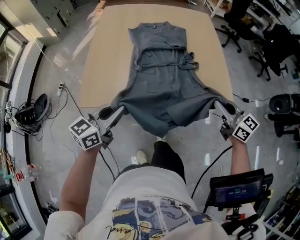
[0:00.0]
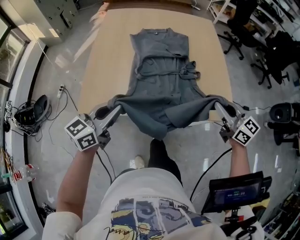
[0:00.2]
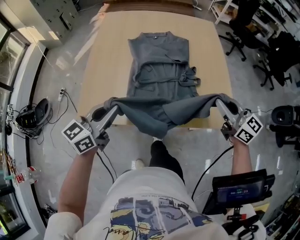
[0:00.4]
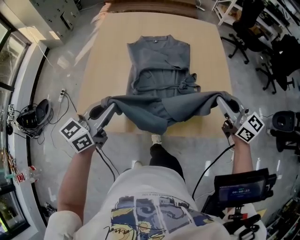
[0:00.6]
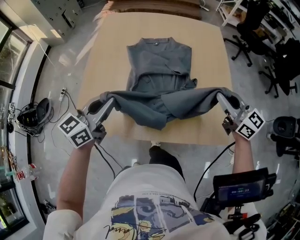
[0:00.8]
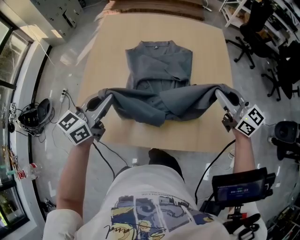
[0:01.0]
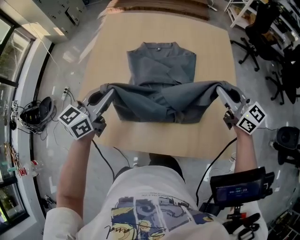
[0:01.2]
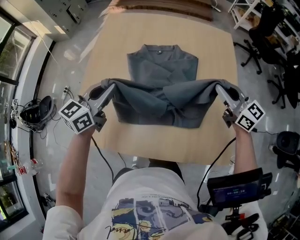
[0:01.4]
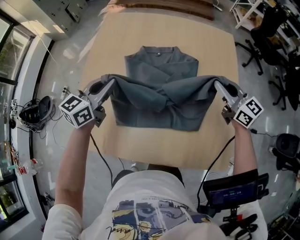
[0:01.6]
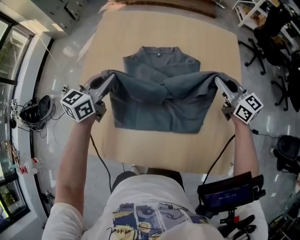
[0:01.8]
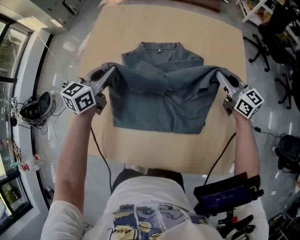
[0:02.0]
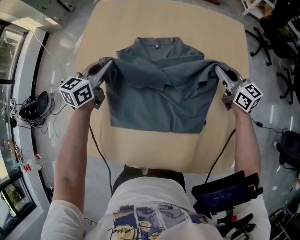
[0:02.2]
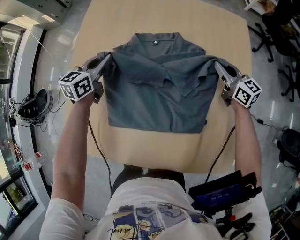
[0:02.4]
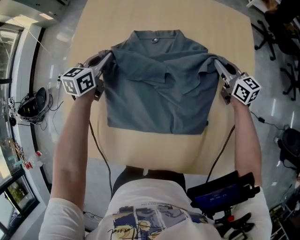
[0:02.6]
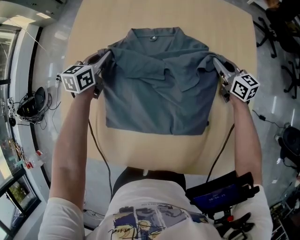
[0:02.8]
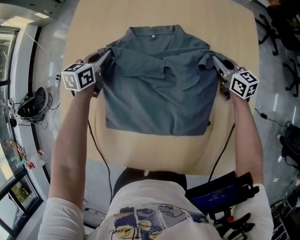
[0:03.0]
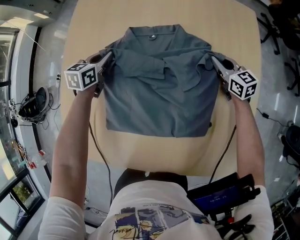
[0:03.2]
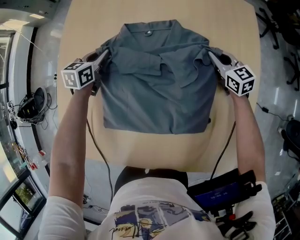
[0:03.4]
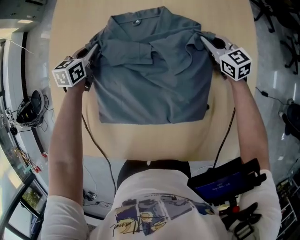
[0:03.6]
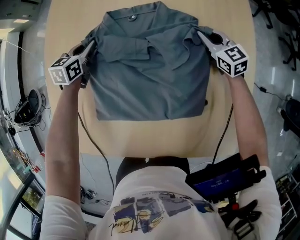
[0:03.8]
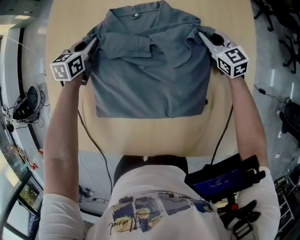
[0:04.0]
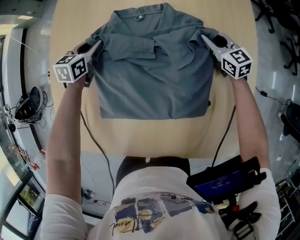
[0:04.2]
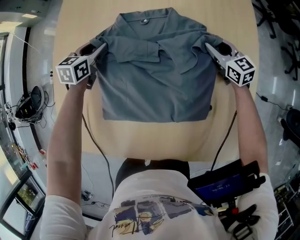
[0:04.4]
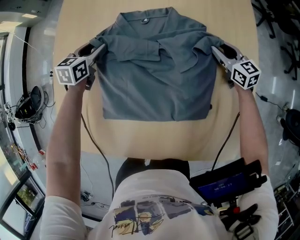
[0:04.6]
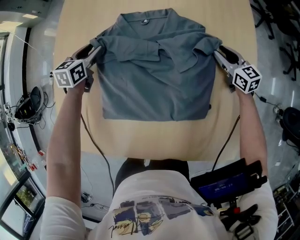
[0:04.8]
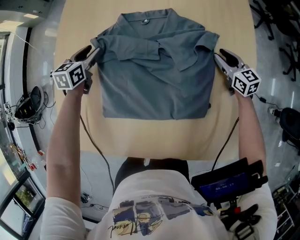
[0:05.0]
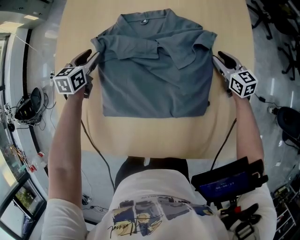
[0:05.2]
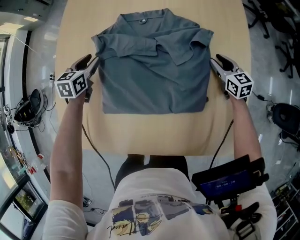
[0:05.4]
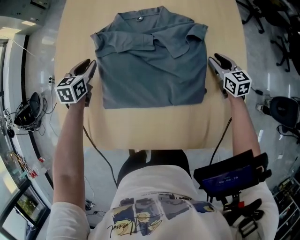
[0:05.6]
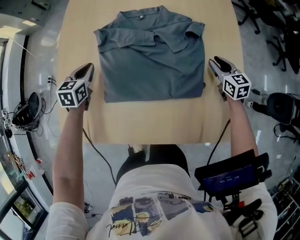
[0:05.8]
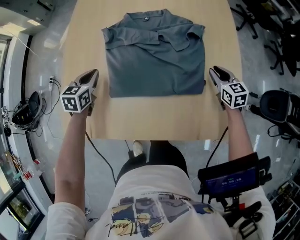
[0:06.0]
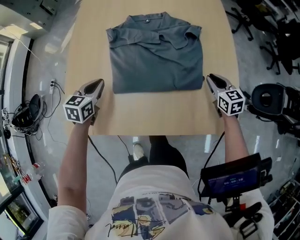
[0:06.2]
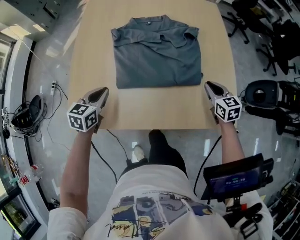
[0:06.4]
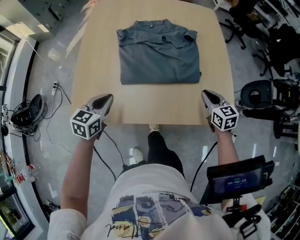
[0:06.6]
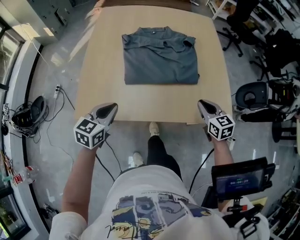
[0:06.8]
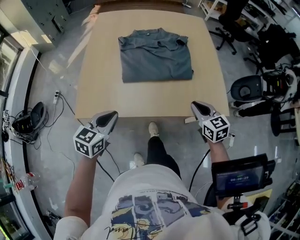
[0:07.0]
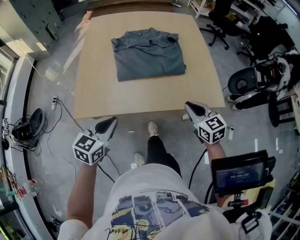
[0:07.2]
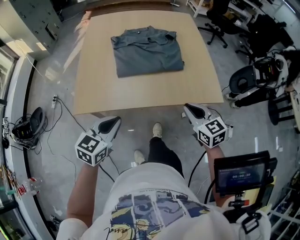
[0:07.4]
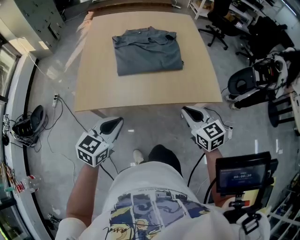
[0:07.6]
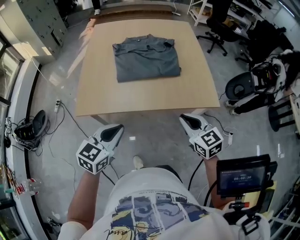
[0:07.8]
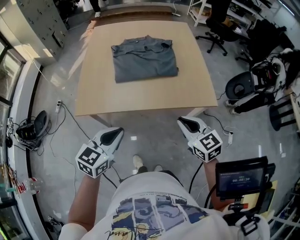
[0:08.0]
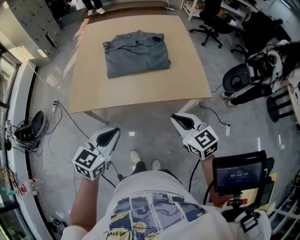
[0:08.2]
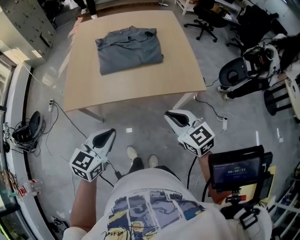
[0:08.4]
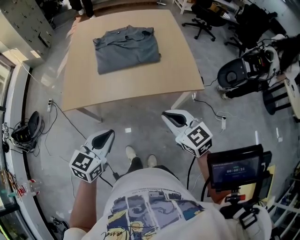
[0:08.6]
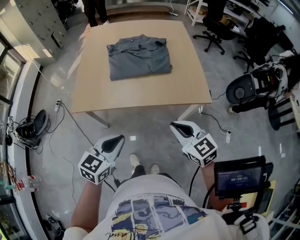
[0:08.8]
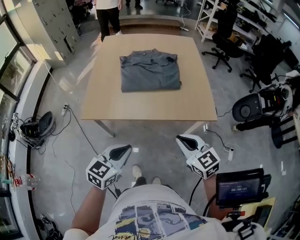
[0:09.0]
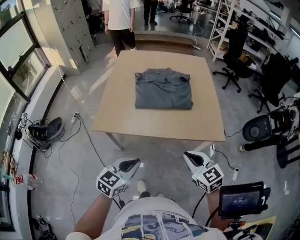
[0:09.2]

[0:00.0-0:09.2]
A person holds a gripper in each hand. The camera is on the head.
0.0 to 1.6 s: The grippers both shift forward by approximately 35 cm.
1.6 to 3.0 s: Both grippers move downward and forward, approximately 25 cm. The left gripper changes its angle by some 20 degrees.
3.0 to 4.6 s: The right gripper opens its fingers; the left gripper opens.
4.6 to 6.2 s: Both grippers travel together backward, roughly 25 cm. The left gripper closes.
6.2 to 7.6 s: The right gripper goes some 35 cm backward, while the left gripper moves backward and upward, roughly 35 cm, and rotates about 20 degrees.
7.6 to 9.2 s: The left gripper moves backward and to the right, about 10 cm, while the right gripper travels backward by about 5 cm.

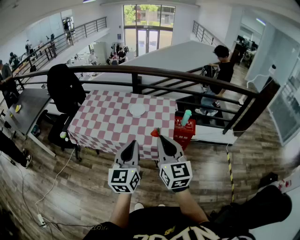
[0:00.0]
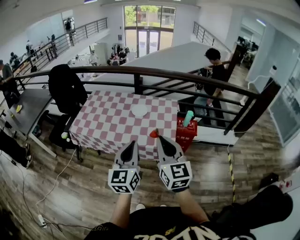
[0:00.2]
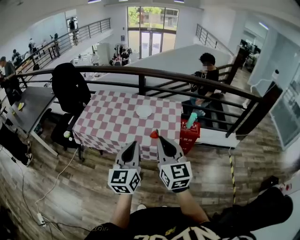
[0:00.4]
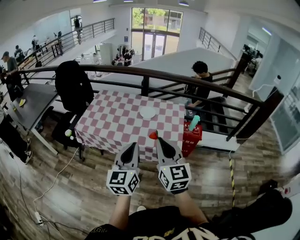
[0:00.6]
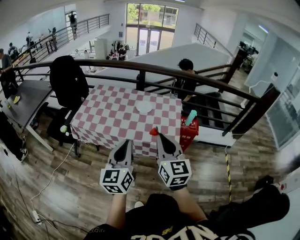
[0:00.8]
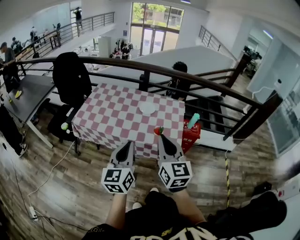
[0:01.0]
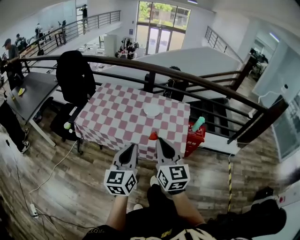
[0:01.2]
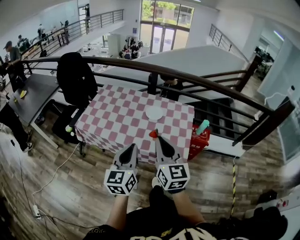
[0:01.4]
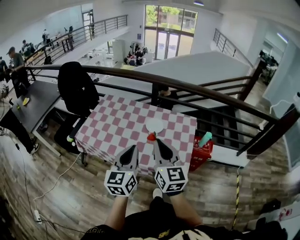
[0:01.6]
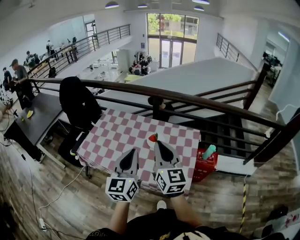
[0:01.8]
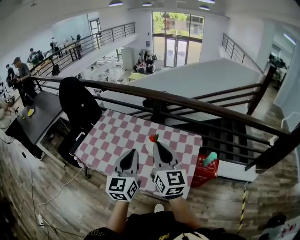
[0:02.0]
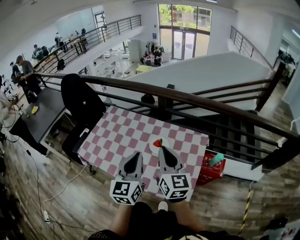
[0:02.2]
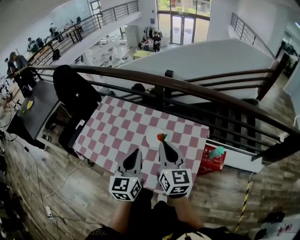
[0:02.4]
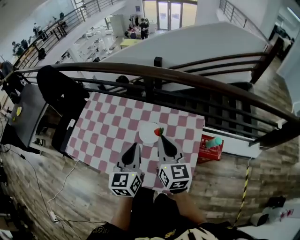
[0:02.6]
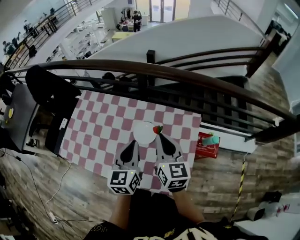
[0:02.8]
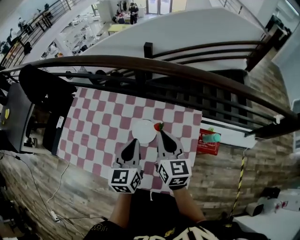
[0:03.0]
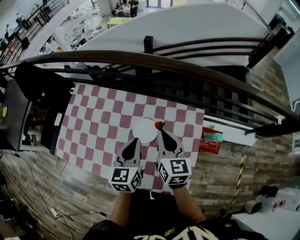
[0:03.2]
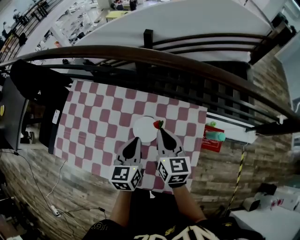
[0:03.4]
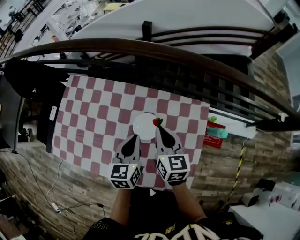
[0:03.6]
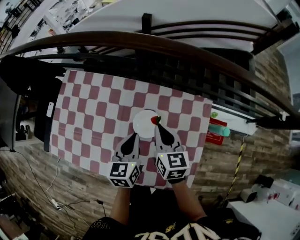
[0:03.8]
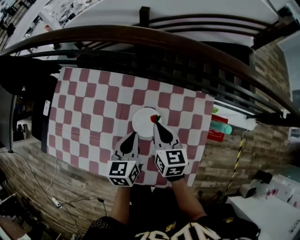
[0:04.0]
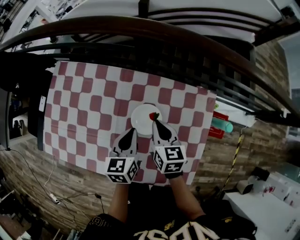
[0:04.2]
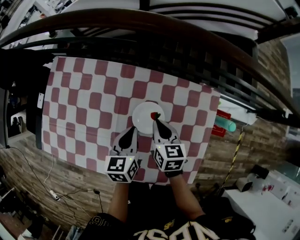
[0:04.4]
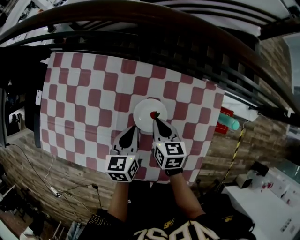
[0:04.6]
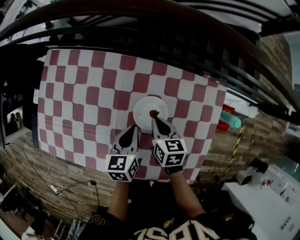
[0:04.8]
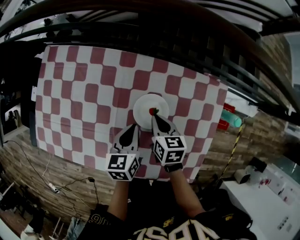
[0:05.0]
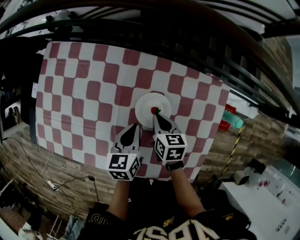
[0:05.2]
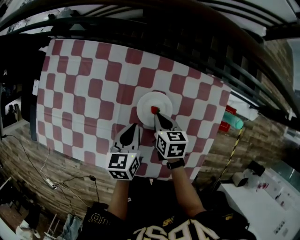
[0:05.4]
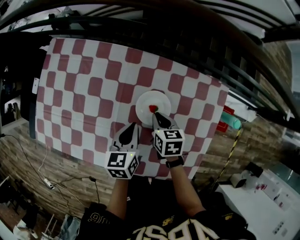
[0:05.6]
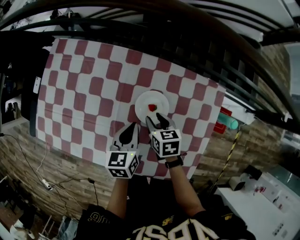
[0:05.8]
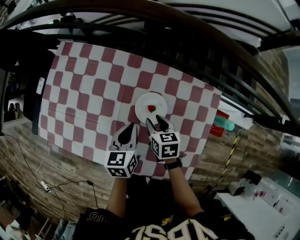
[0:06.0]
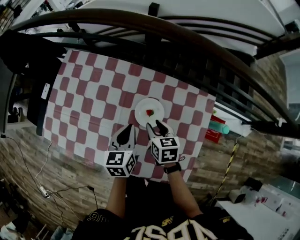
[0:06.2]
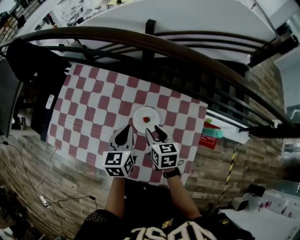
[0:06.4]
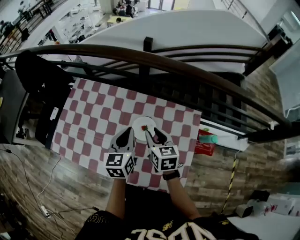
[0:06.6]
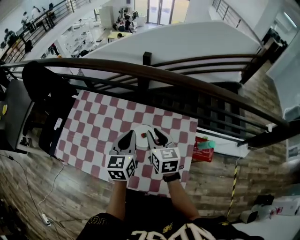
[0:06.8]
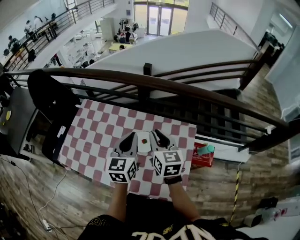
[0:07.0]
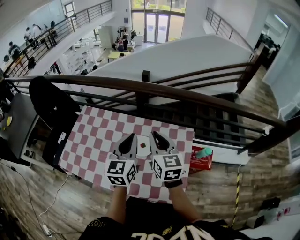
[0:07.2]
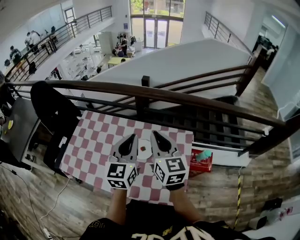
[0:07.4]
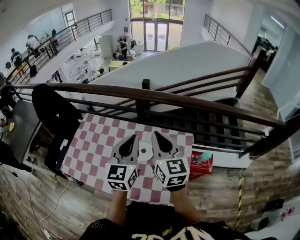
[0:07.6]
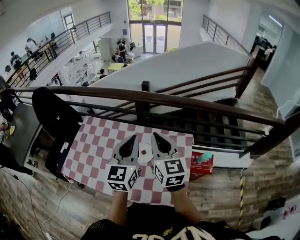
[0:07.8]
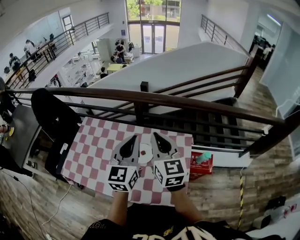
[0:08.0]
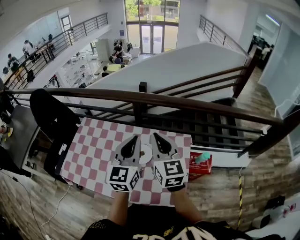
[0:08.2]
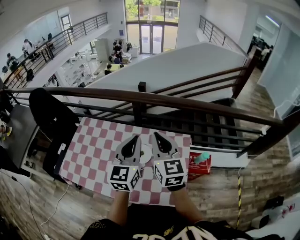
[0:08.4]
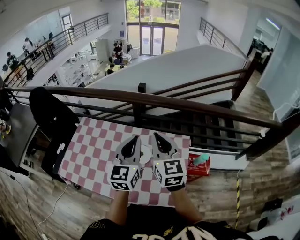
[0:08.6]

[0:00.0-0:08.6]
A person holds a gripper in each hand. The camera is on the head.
0.0 to 1.4 s: Both grippers move to the left and forward, roughly 15 cm.
1.4 to 2.8 s: Both grippers travel together forward, approximately 35 cm.
2.8 to 4.4 s: The right gripper goes some 25 cm downward, and changes its angle by some 30 degrees. The left gripper travels downward and forward by roughly 20 cm, and rotates some 20 degrees.
4.4 to 5.8 s: The right gripper heads downward, covering roughly 10 cm, and opens its fingers.
5.8 to 7.2 s: Both grippers move upward, roughly 35 cm. The right gripper tips its fingers upward by approximately 40 degrees, and closes its fingers; the left gripper rotates roughly 40 degrees.
7.2 to 8.6 s: The grippers both shift upward by roughly 5 cm.

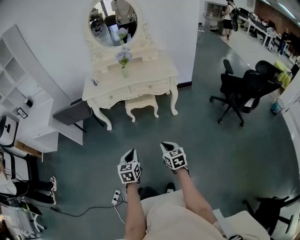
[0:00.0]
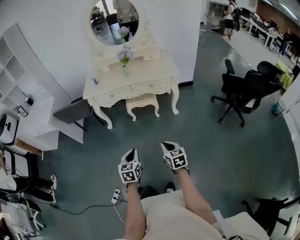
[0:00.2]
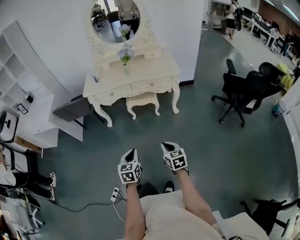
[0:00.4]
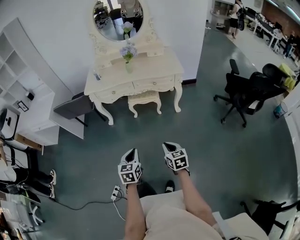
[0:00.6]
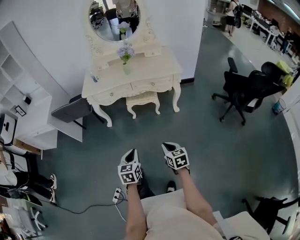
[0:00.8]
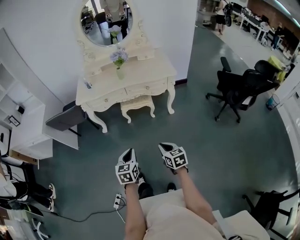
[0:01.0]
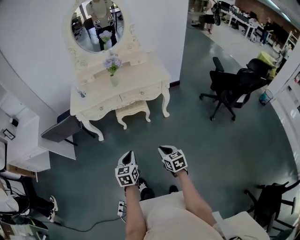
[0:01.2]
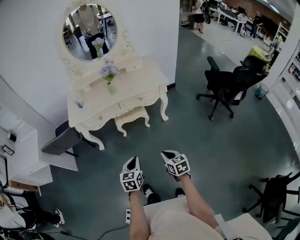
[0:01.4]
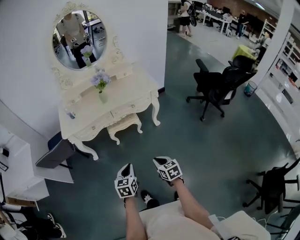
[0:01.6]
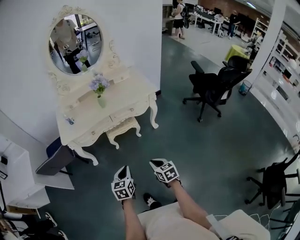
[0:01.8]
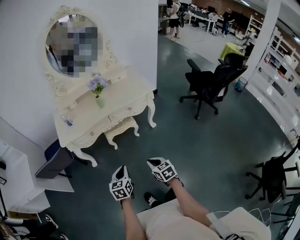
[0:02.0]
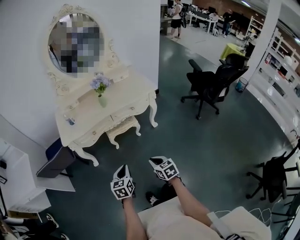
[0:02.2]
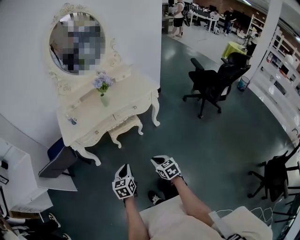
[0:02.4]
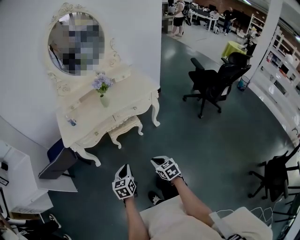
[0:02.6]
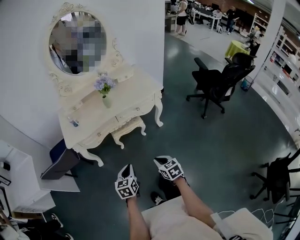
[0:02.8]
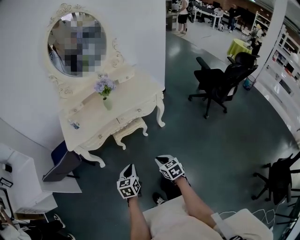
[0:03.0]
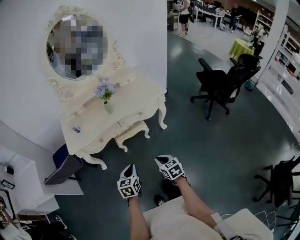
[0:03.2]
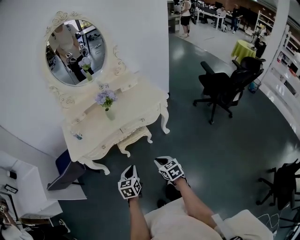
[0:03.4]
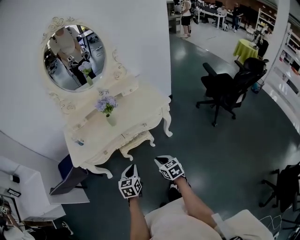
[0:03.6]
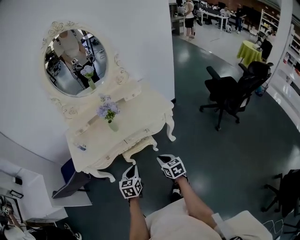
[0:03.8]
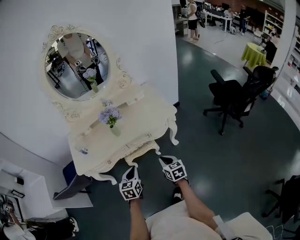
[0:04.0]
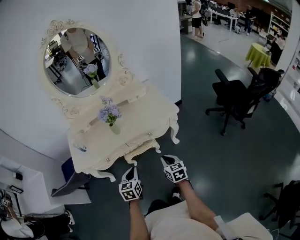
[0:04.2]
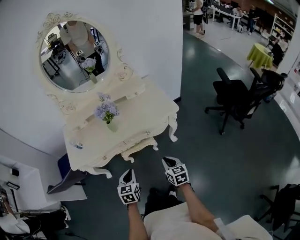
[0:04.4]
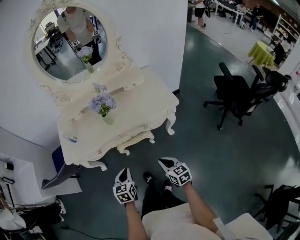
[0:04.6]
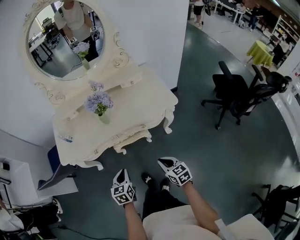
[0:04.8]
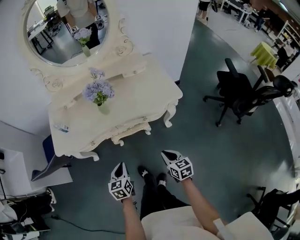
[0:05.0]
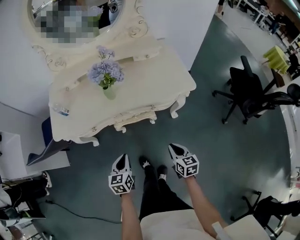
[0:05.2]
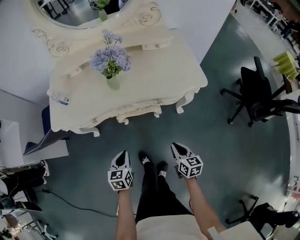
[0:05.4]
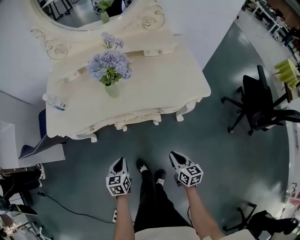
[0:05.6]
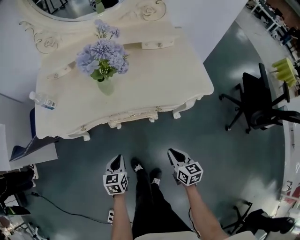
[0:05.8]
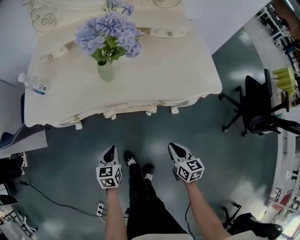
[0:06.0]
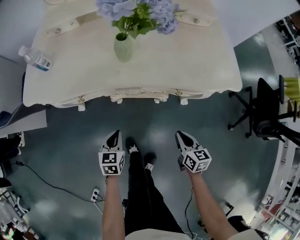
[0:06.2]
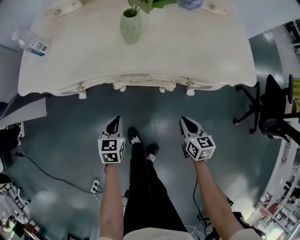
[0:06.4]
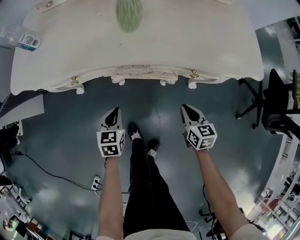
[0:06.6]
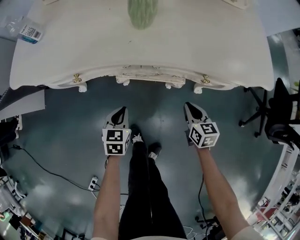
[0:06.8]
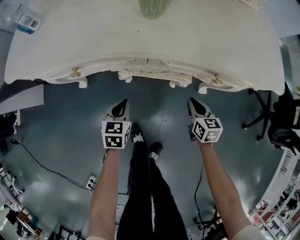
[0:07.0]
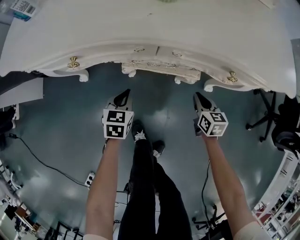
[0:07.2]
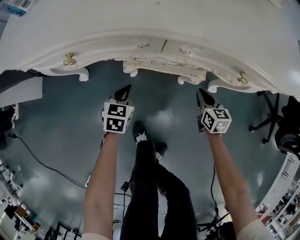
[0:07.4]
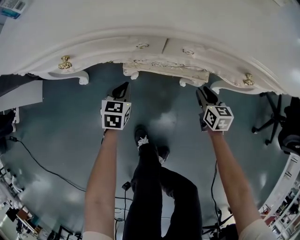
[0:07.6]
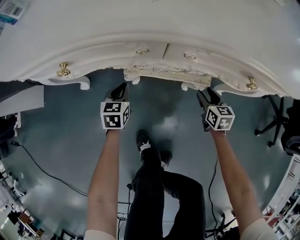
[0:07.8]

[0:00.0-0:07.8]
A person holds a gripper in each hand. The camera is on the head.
0.0 to 1.6 s: The left gripper shifts about 15 cm forward. The right gripper goes some 15 cm forward and to the left.
1.6 to 3.2 s: The grippers both shift forward and to the left by some 15 cm.
3.2 to 4.6 s: The right gripper goes approximately 20 cm forward and to the right. Meanwhile the left gripper shifts roughly 15 cm forward.
4.6 to 6.2 s: The right gripper moves downward and forward, approximately 25 cm. Meanwhile the left gripper is displaced downward by approximately 30 cm.
6.2 to 7.8 s: Both grippers travel together downward and forward, roughly 30 cm. The right gripper opens.
